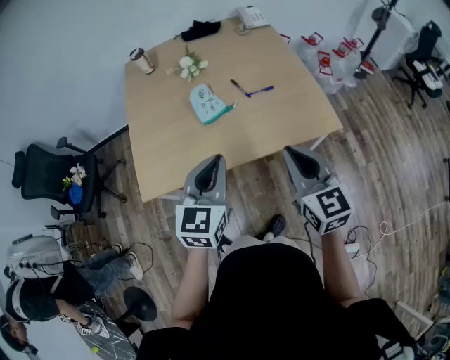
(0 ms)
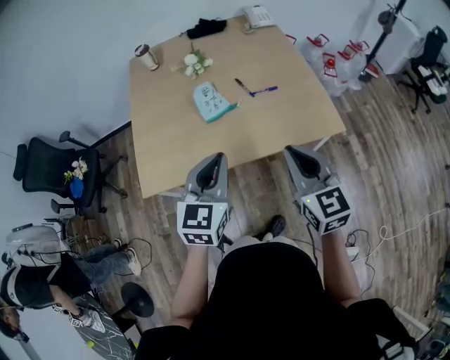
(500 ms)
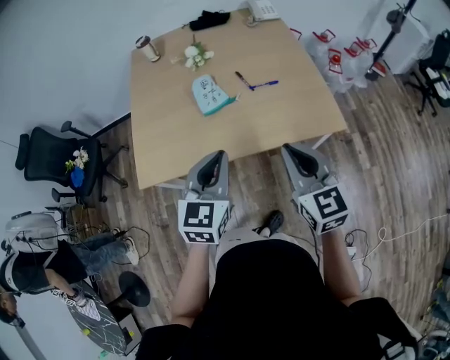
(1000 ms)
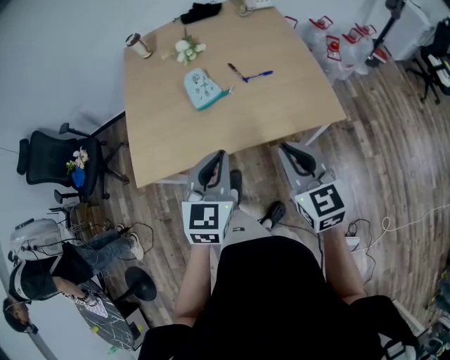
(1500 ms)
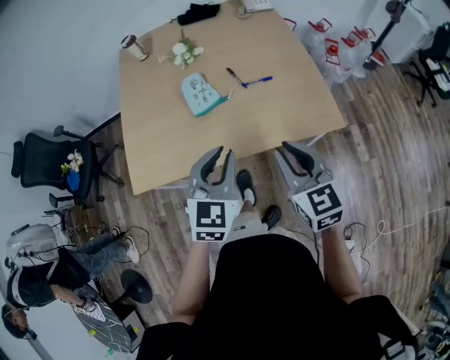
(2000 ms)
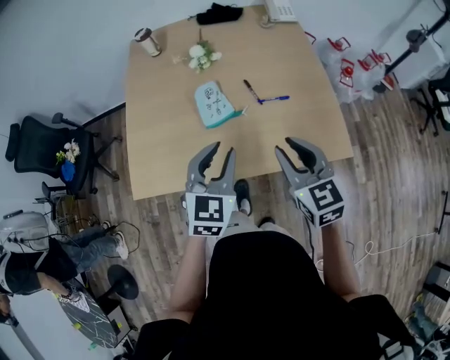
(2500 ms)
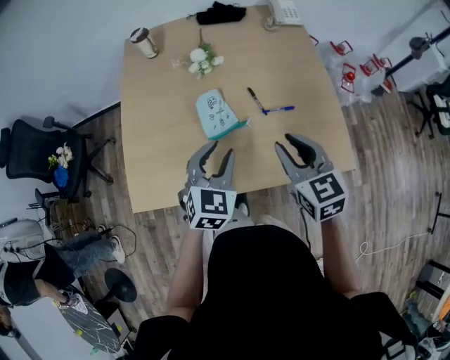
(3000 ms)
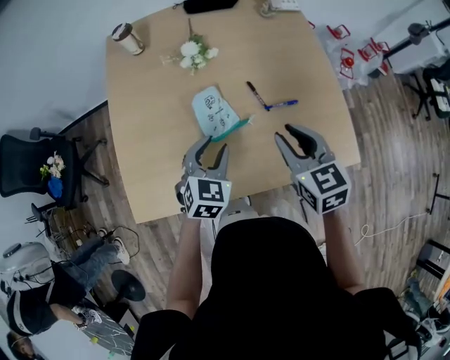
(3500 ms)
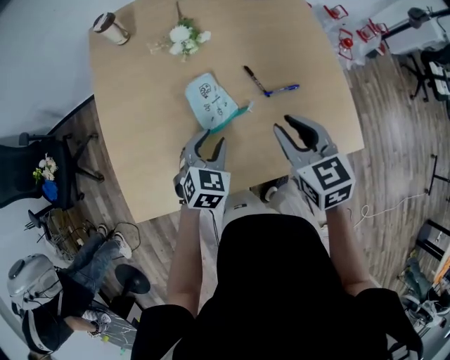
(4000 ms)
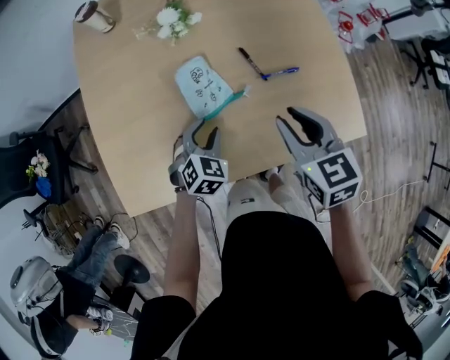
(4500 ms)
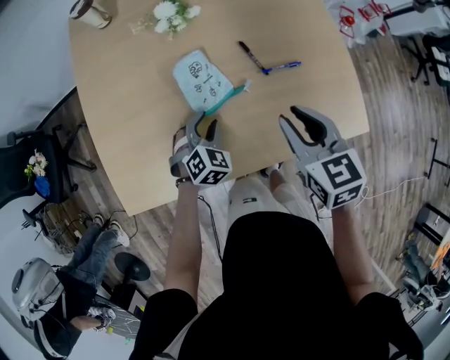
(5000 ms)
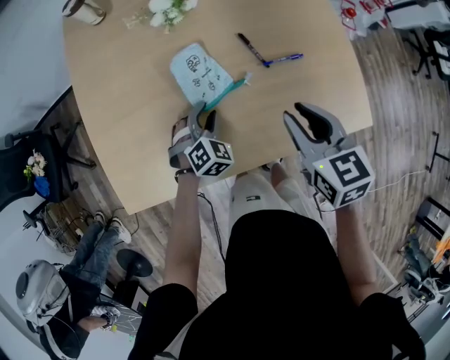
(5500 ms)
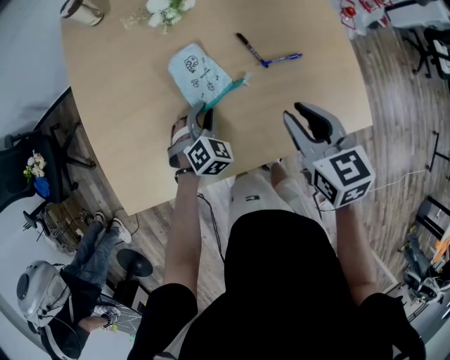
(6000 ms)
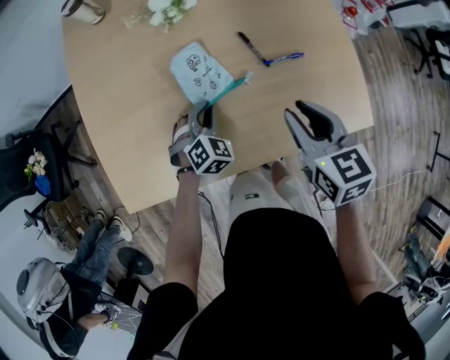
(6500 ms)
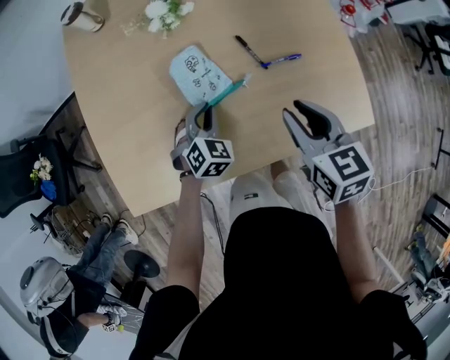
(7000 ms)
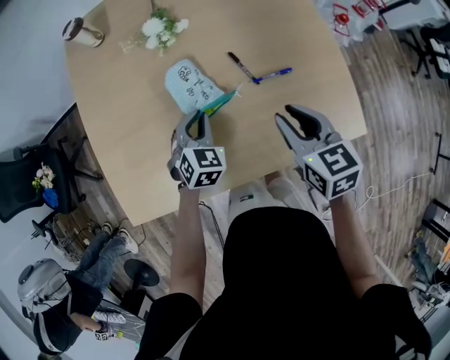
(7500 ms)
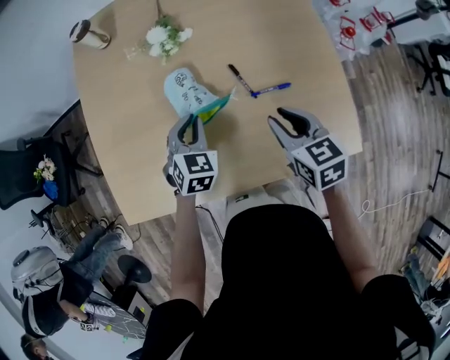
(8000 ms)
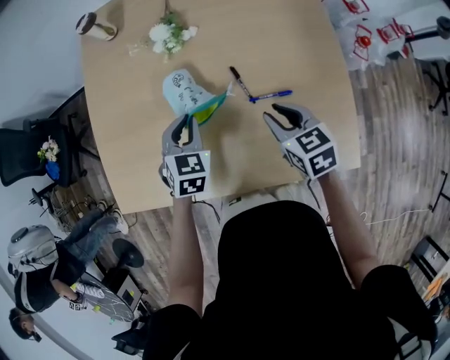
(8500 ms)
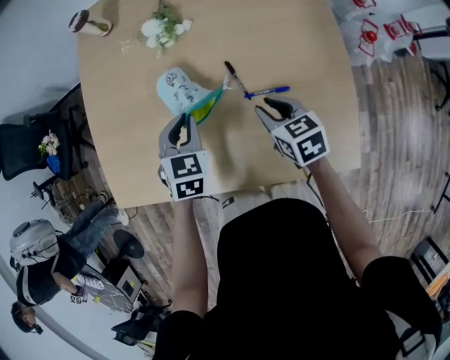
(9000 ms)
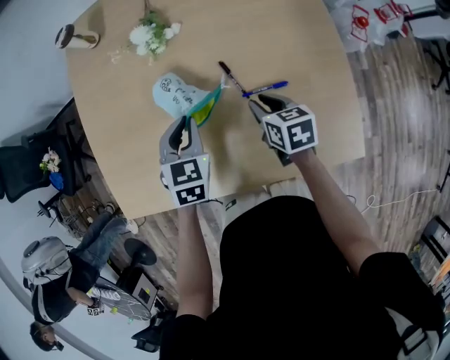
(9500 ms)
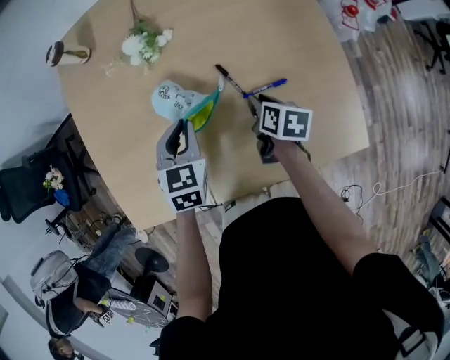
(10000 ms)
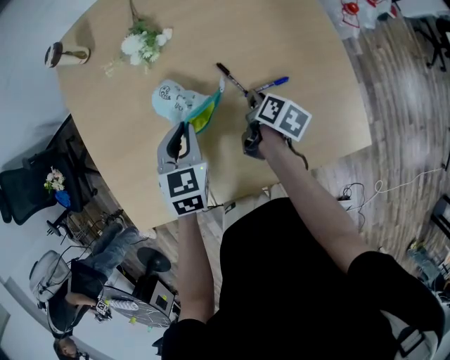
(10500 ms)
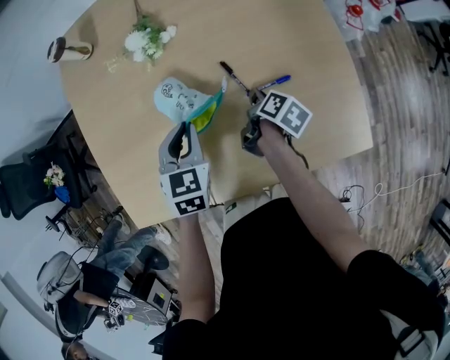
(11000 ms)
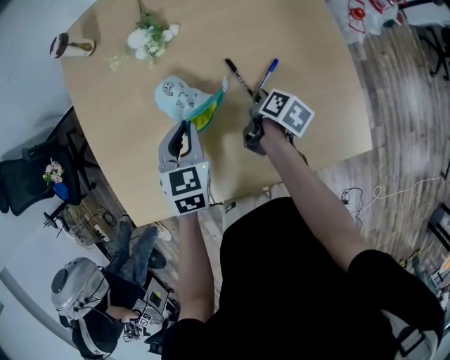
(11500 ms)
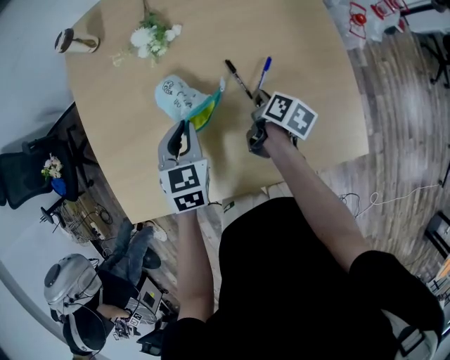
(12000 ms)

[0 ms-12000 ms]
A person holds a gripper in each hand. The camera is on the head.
0 ms to 2000 ms: The right gripper changes place by approximately 5 cm; the left gripper travels to the right by some 5 cm.
2000 ms to 4000 ms: The left gripper travels forward, downward and to the left by approximately 30 cm, turns by some 20 degrees, and opens its fingers; the right gripper is displaced forward by about 25 cm.
4000 ms to 6000 ms: The left gripper heads downward, covering approximately 10 cm, and swivels some 20 degrees. The right gripper moves roughly 5 cm.
6000 ms to 8000 ms: The left gripper goes some 10 cm upward and forward, and turns by some 30 degrees. The right gripper shifts about 5 cm forward.
8000 ms to 10000 ms: The right gripper travels downward and forward by roughly 15 cm, and rolls clockwise, seen from behind, by some 40 degrees.
10000 ms to 12000 ms: The right gripper swivels about 20 degrees.

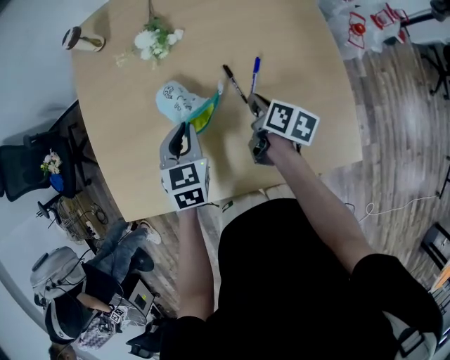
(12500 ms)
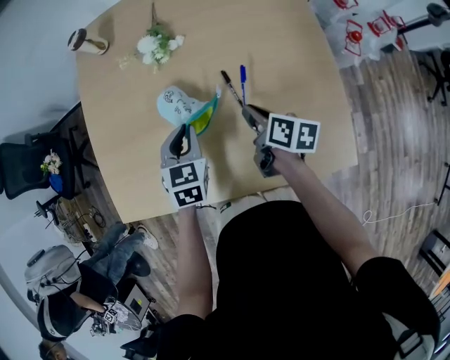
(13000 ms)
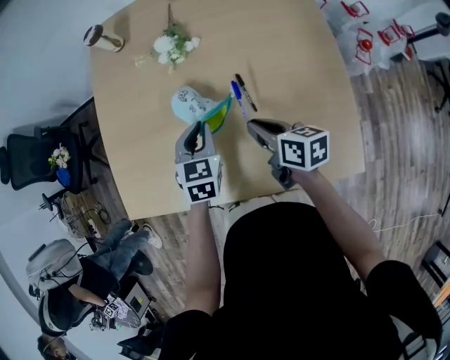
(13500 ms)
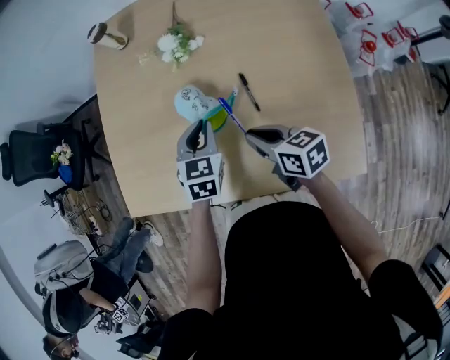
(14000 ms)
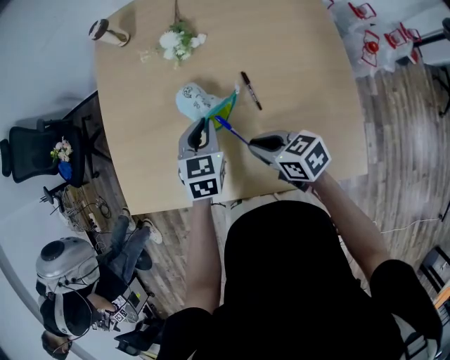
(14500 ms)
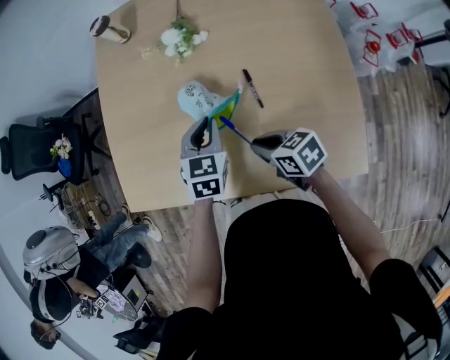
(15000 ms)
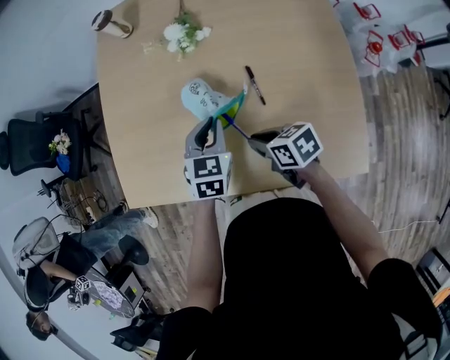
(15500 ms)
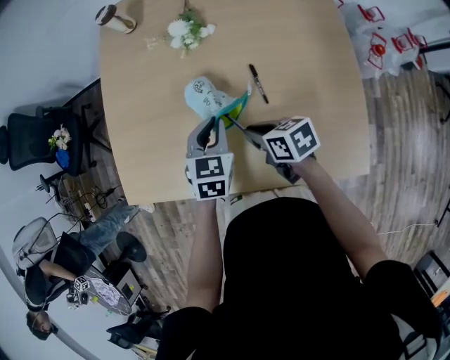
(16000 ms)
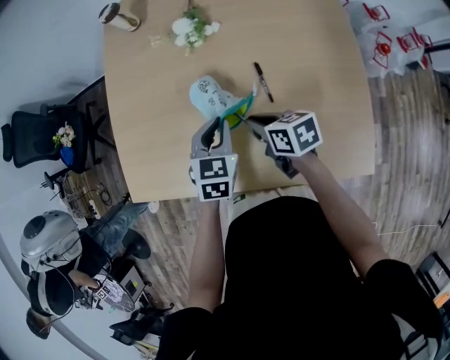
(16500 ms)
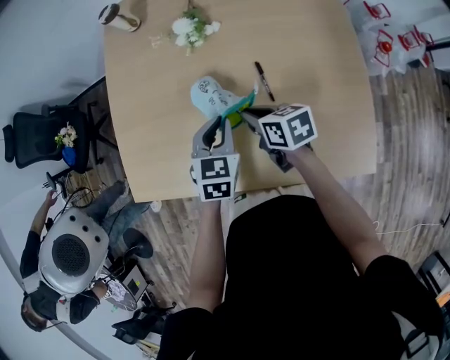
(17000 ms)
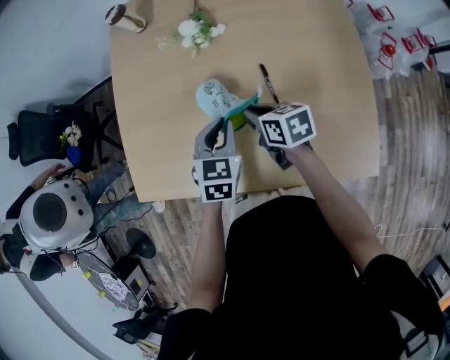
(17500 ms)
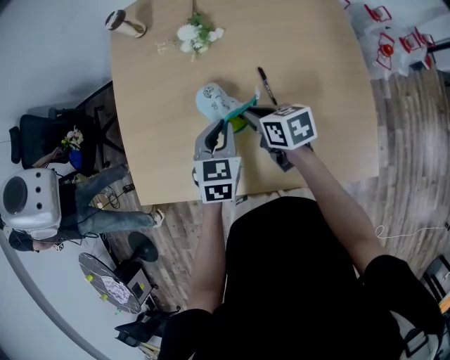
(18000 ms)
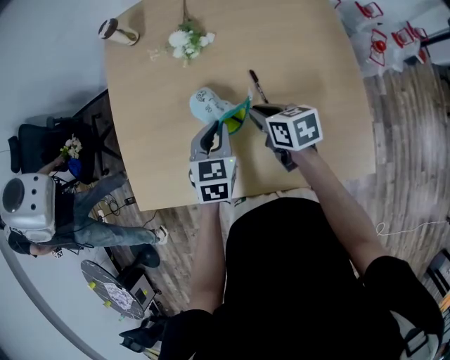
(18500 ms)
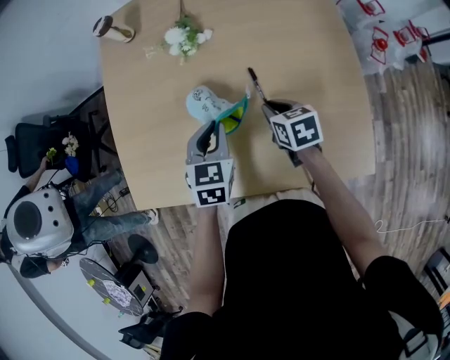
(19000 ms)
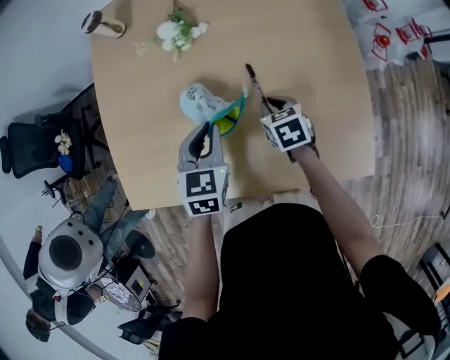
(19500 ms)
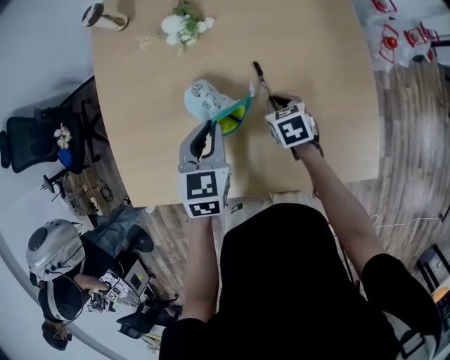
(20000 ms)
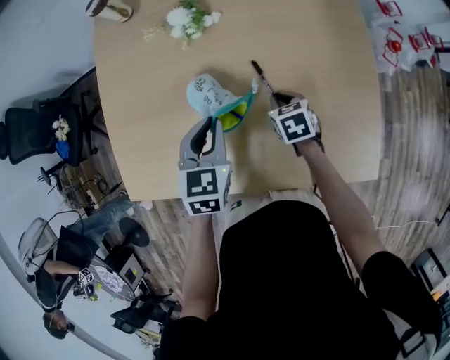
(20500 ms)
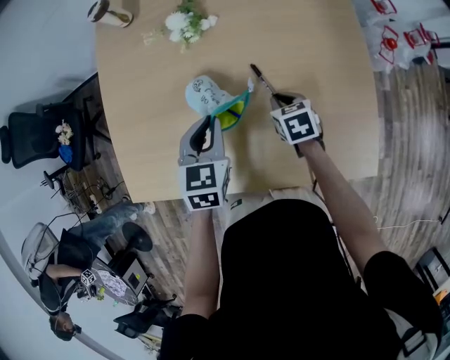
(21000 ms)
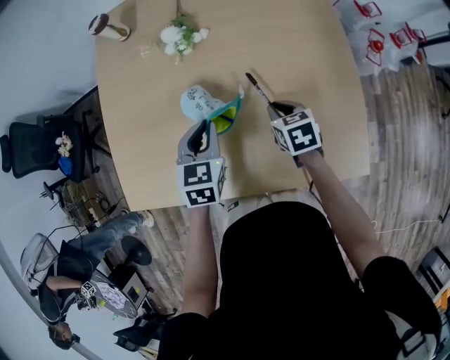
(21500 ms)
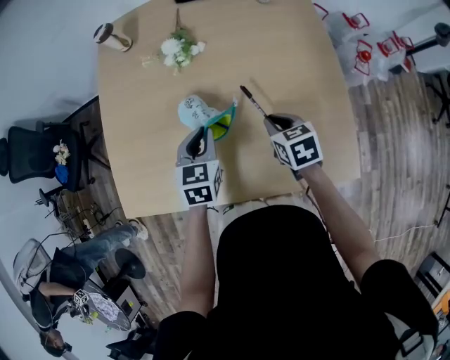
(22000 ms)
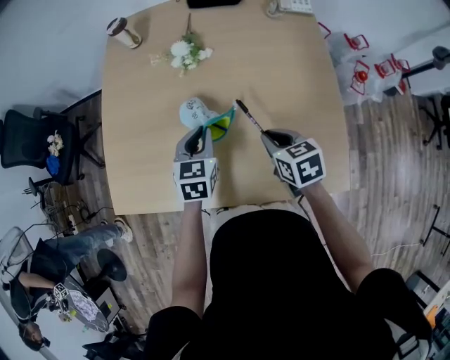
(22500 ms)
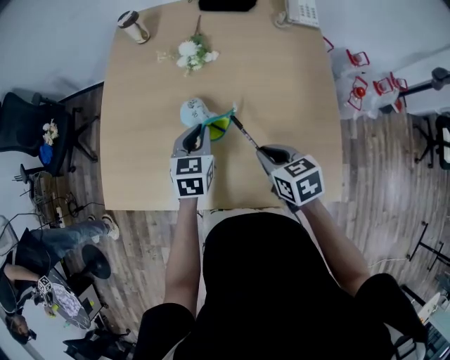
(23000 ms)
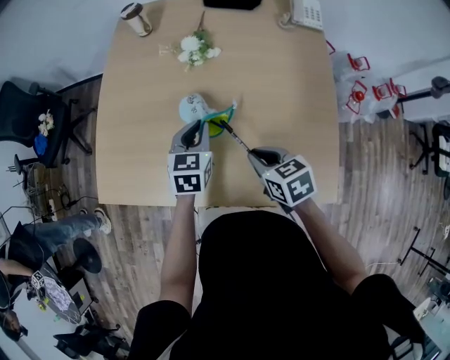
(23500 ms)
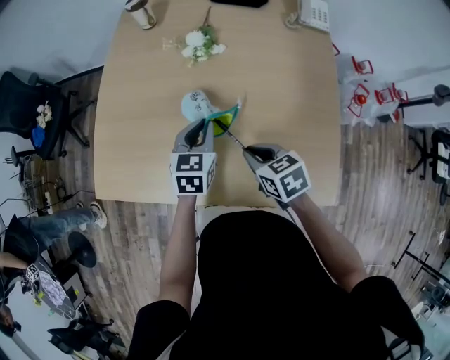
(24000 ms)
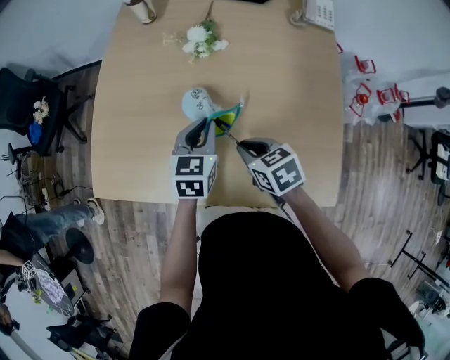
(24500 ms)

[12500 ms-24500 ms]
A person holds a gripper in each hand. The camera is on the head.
12500 ms to 14500 ms: The right gripper heads to the left, backward and upward, covering about 15 cm, and turns by some 60 degrees.
14500 ms to 16500 ms: The right gripper heads forward, covering approximately 5 cm.
16500 ms to 18500 ms: The right gripper changes place by roughly 5 cm.
18500 ms to 20500 ms: The right gripper heads downward, covering about 10 cm, and turns by approximately 30 degrees.
20500 ms to 22500 ms: The right gripper shifts roughly 15 cm upward and backward.
22500 ms to 24500 ms: The right gripper is displaced to the left by roughly 10 cm.

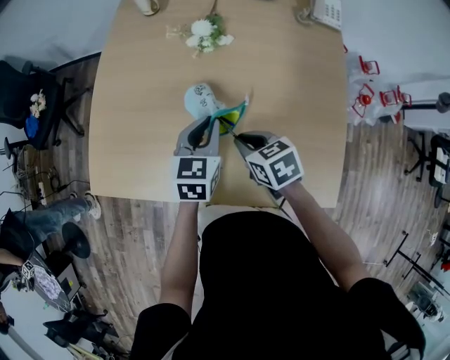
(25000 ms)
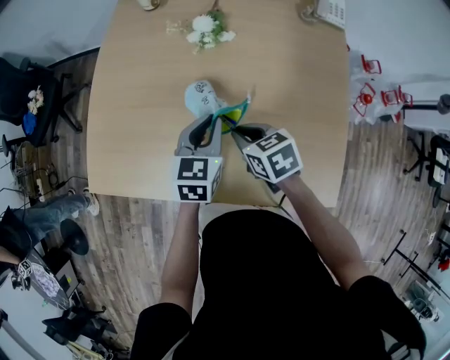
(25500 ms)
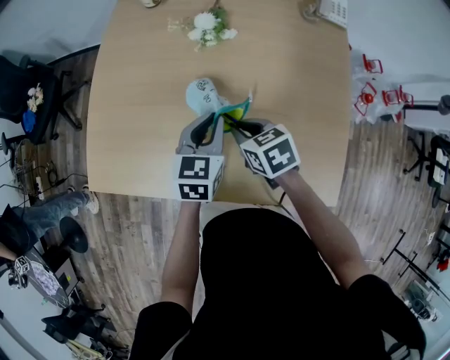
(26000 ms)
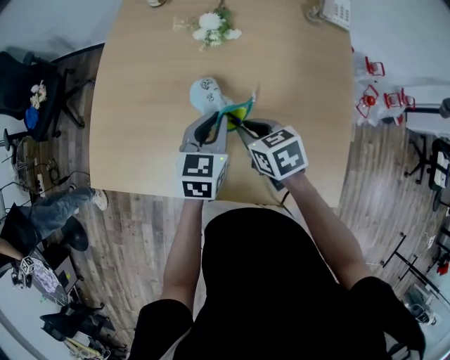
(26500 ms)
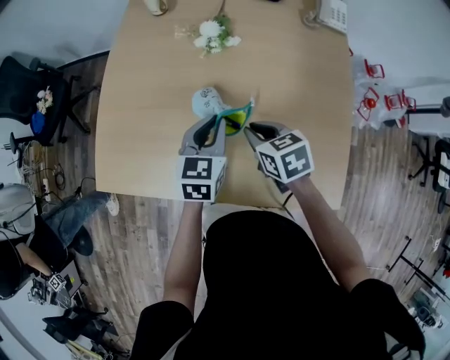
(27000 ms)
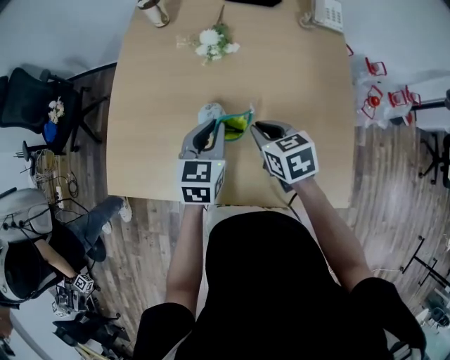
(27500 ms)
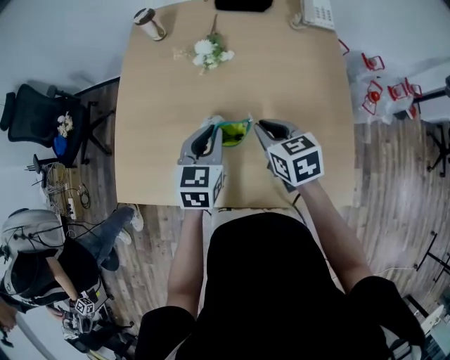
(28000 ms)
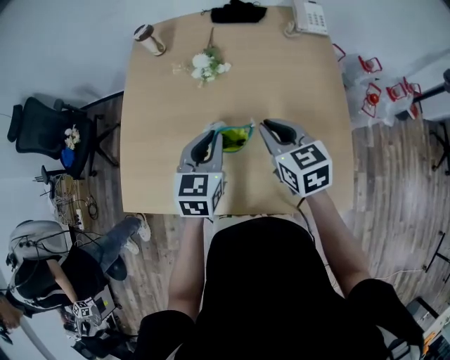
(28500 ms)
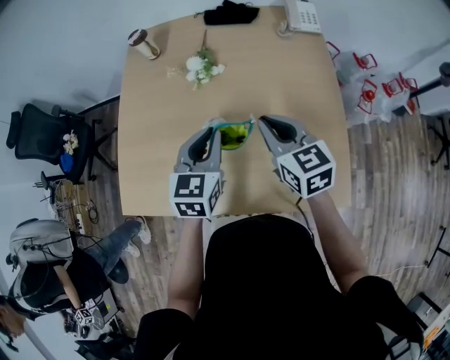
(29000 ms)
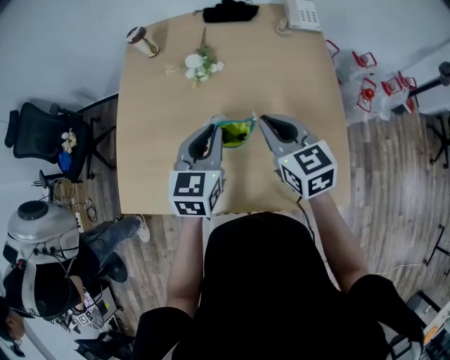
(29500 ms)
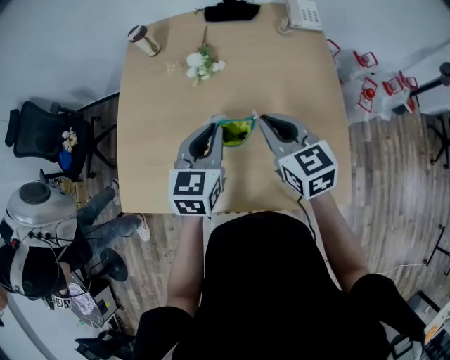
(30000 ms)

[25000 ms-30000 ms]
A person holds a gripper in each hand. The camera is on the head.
25000 ms to 27500 ms: The right gripper ends up about 5 cm from where it was.
27500 ms to 30000 ms: The right gripper moves upward and to the right, about 15 cm, and changes its angle by roughly 30 degrees, while the left gripper is displaced upward by roughly 10 cm.
